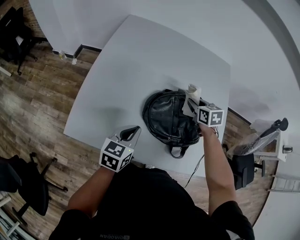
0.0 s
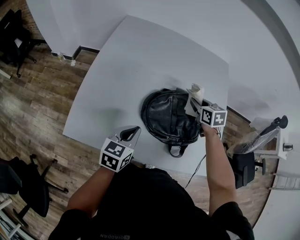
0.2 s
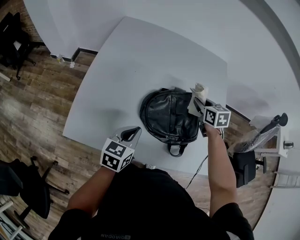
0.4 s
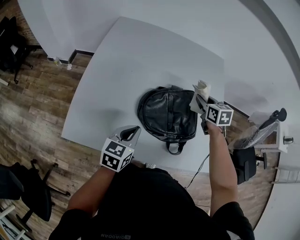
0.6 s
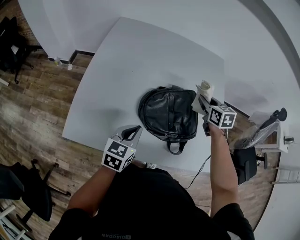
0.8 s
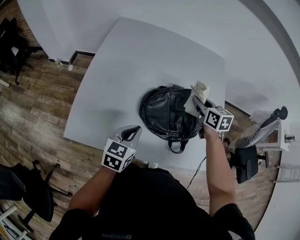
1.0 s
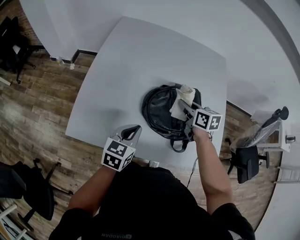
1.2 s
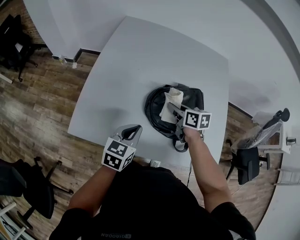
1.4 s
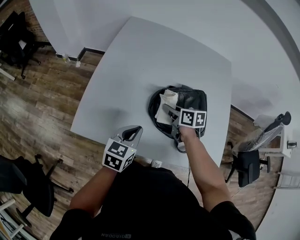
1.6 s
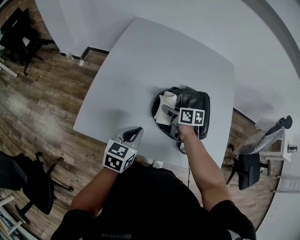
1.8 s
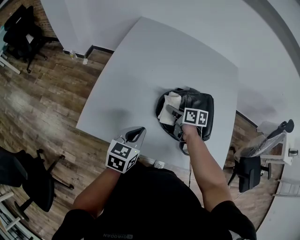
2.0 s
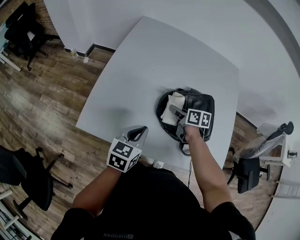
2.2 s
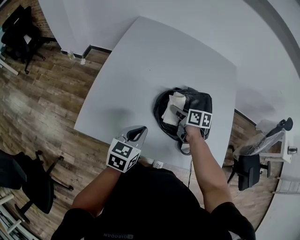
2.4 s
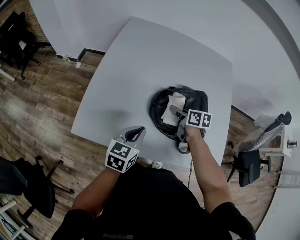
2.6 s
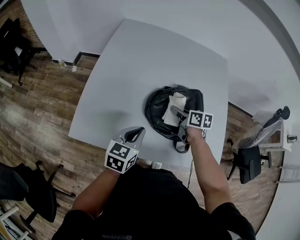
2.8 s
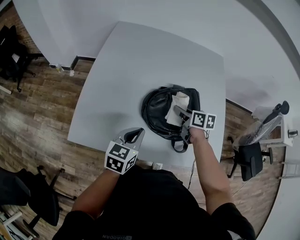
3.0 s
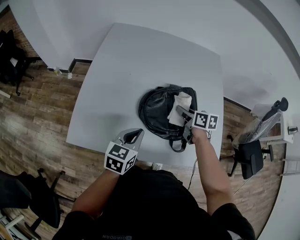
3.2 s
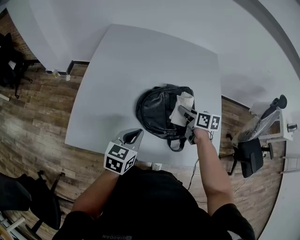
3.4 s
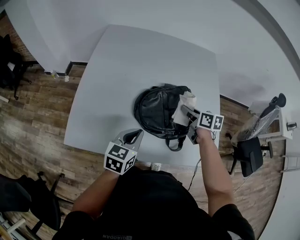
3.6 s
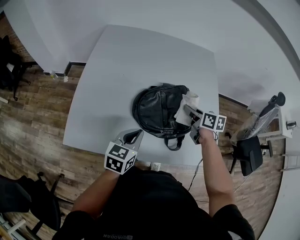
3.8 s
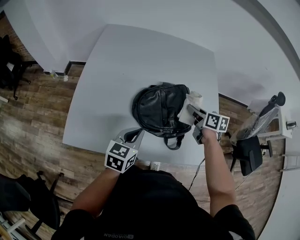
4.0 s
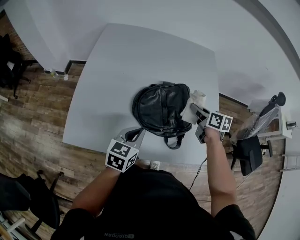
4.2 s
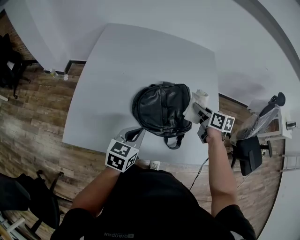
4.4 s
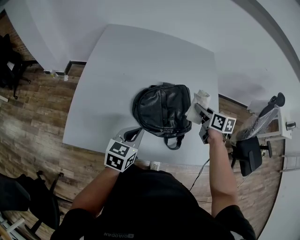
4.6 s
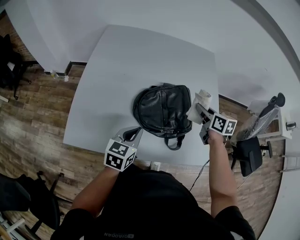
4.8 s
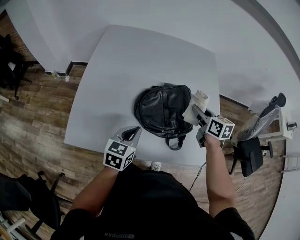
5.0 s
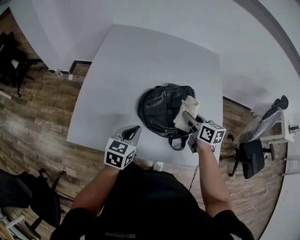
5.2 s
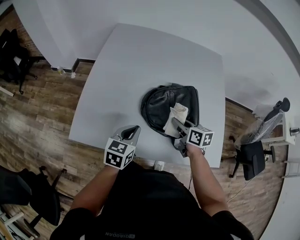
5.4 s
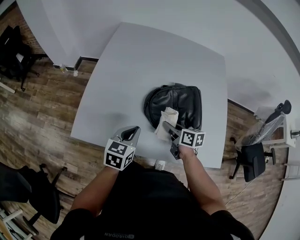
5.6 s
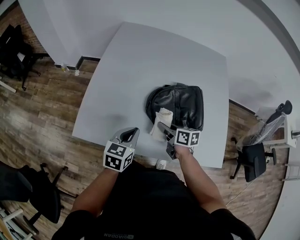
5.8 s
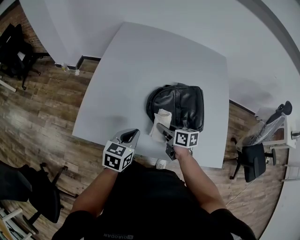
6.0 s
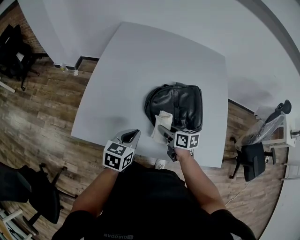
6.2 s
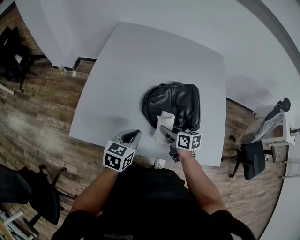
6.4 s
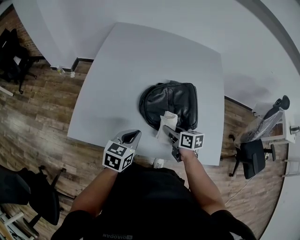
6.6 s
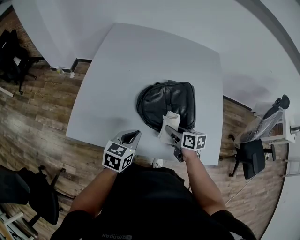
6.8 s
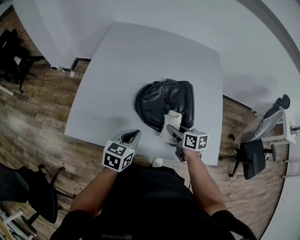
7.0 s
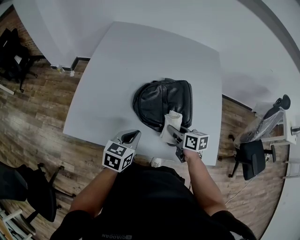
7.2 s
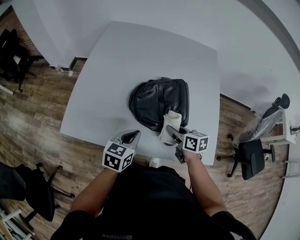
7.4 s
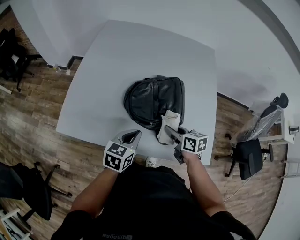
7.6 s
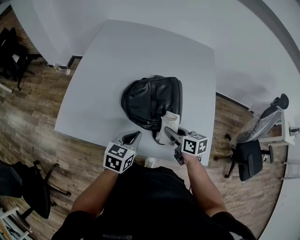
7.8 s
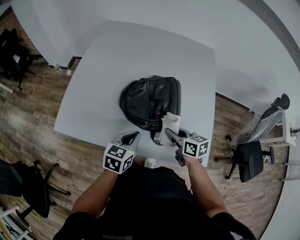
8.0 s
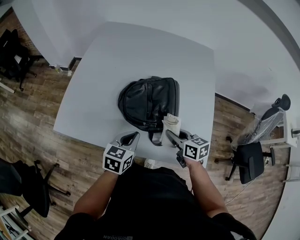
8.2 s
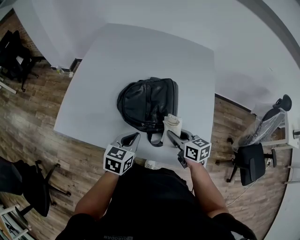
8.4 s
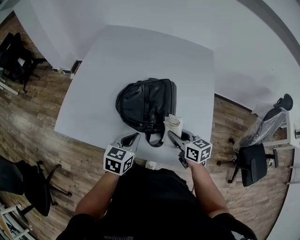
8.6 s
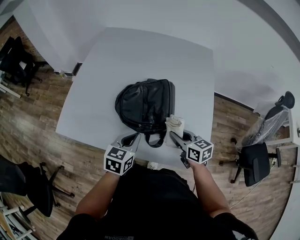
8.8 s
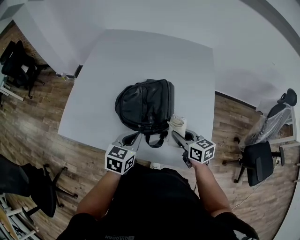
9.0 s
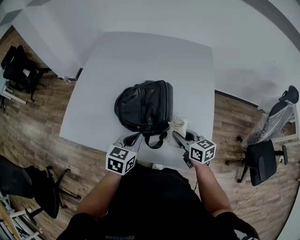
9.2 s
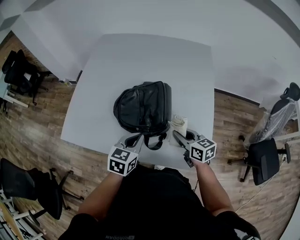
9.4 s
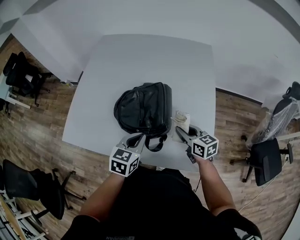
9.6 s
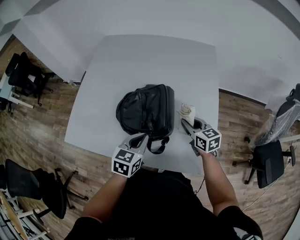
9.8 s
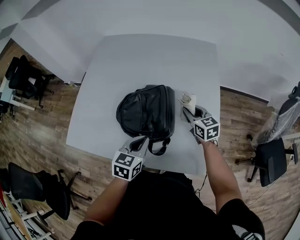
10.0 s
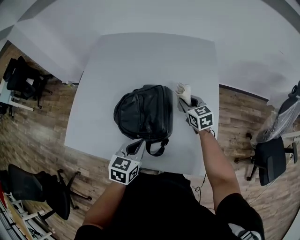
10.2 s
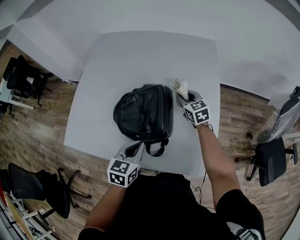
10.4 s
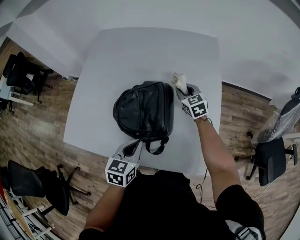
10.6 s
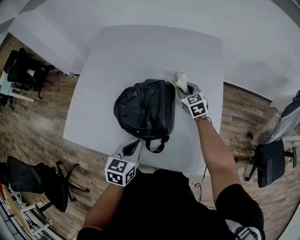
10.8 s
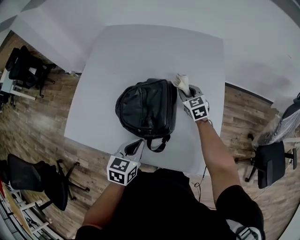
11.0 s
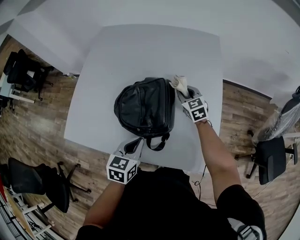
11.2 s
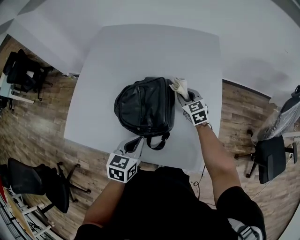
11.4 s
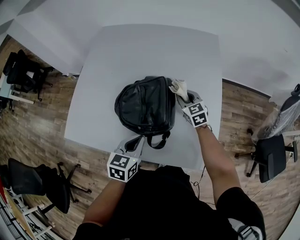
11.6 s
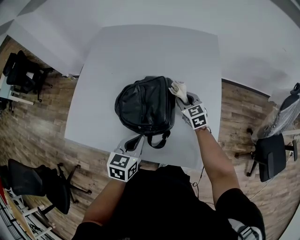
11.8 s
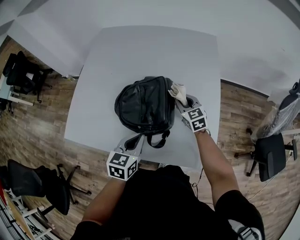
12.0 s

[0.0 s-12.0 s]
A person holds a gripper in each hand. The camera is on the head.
0.0 to 1.6 s: The right gripper is displaced to the left and backward by roughly 15 cm, and turns by about 30 degrees.
1.6 to 3.0 s: The right gripper goes some 10 cm to the right.
3.0 to 4.4 s: The right gripper shifts roughly 15 cm to the right and upward.
4.4 to 6.0 s: The right gripper goes approximately 25 cm to the left, downward and backward, and changes its angle by about 20 degrees; the left gripper heads to the left, covering some 10 cm.
6.0 to 7.6 s: Both grippers travel together to the right, roughly 15 cm.
7.6 to 9.0 s: The grippers both shift to the right by roughly 10 cm.
9.0 to 10.4 s: The right gripper goes roughly 20 cm forward, and swivels roughly 20 degrees.
10.4 to 12.0 s: The right gripper heads backward, covering roughly 5 cm.

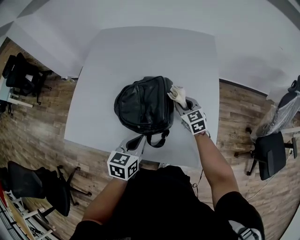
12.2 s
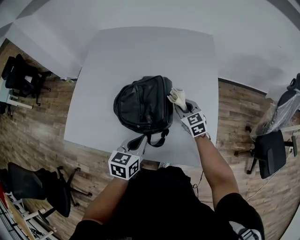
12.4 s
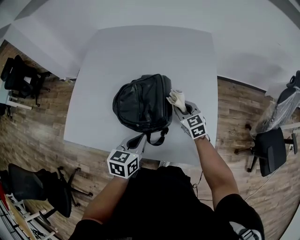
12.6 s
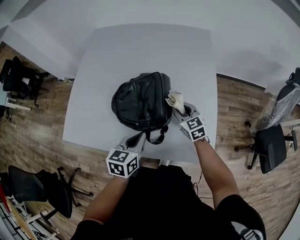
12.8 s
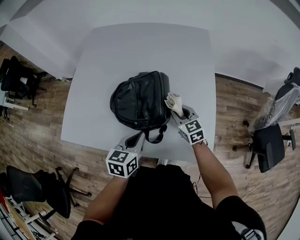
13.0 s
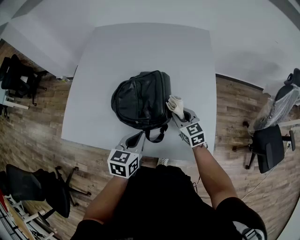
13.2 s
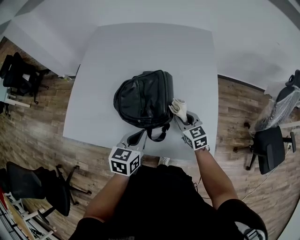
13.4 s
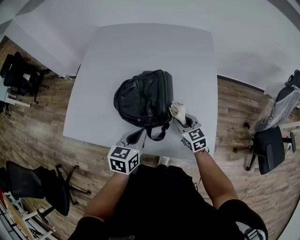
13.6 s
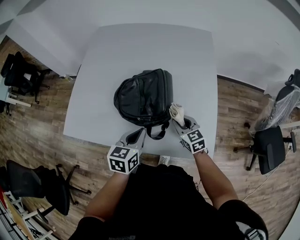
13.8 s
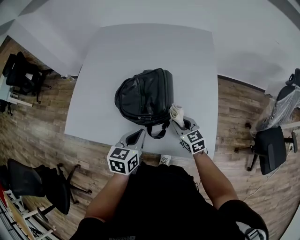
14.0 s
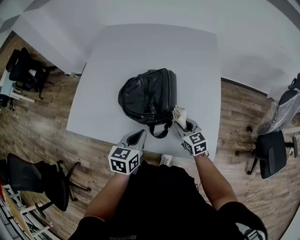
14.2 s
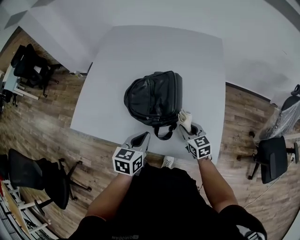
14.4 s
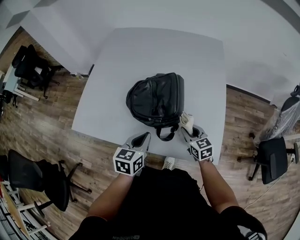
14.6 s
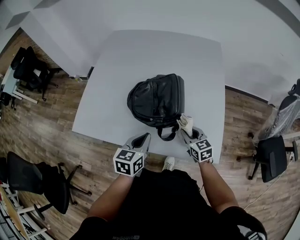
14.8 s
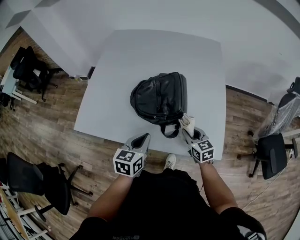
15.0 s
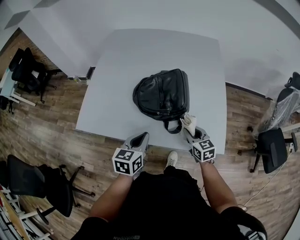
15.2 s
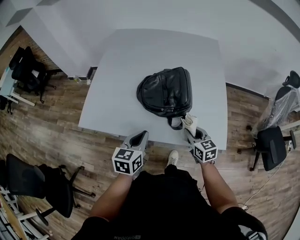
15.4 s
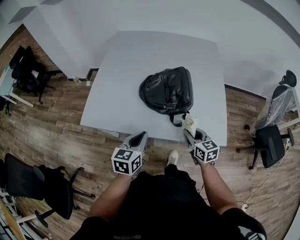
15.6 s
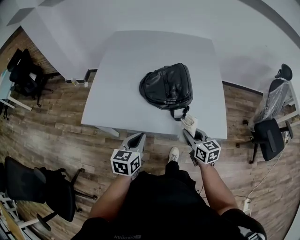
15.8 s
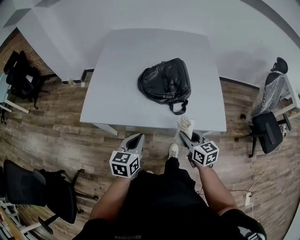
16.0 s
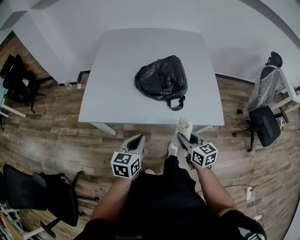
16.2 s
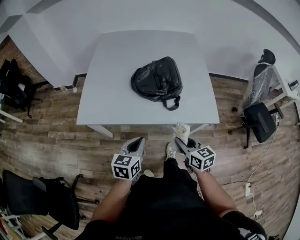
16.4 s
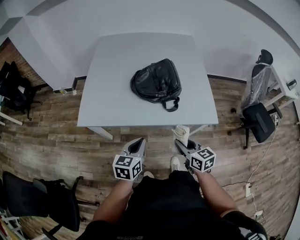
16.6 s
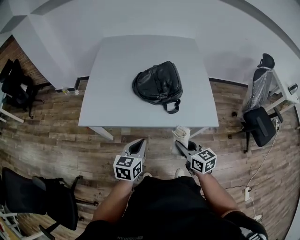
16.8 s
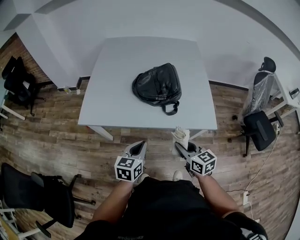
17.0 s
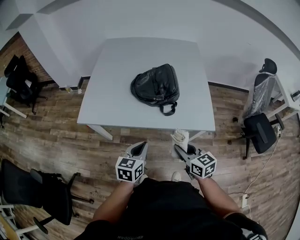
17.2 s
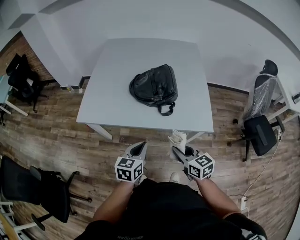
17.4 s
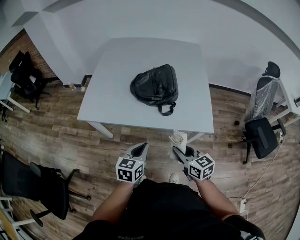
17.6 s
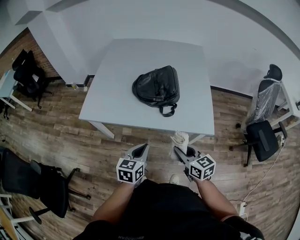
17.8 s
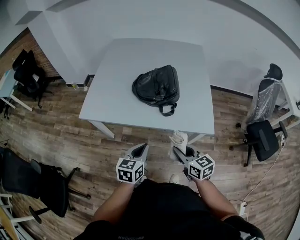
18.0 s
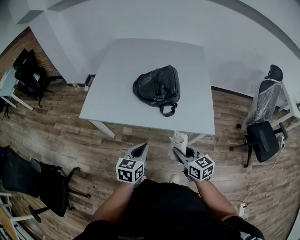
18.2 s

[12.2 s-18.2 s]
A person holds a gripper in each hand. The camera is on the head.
12.2 to 13.8 s: The right gripper goes approximately 15 cm backward.
13.8 to 15.2 s: The right gripper is displaced backward by approximately 10 cm. Meanwhile the left gripper heads to the left and backward, covering about 10 cm.
15.2 to 16.6 s: Both grippers move backward and to the left, roughly 20 cm.
16.6 to 18.2 s: The two grippers go roughly 5 cm to the right.

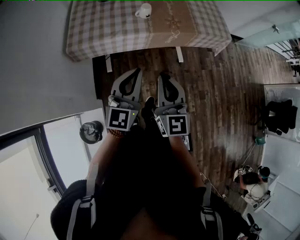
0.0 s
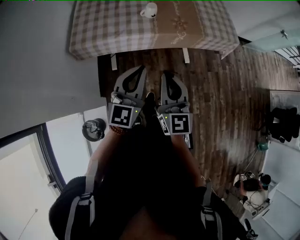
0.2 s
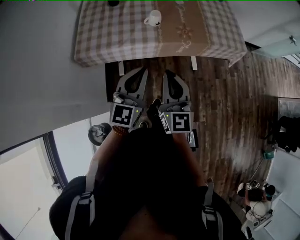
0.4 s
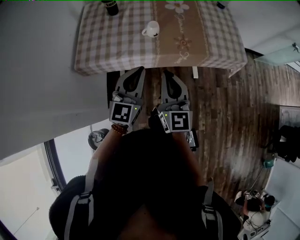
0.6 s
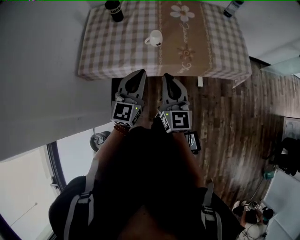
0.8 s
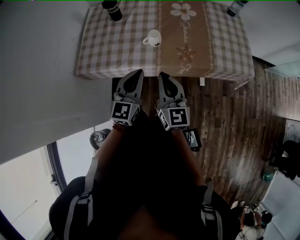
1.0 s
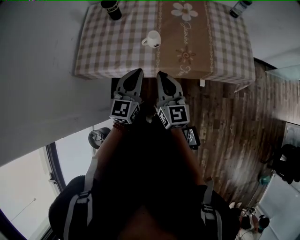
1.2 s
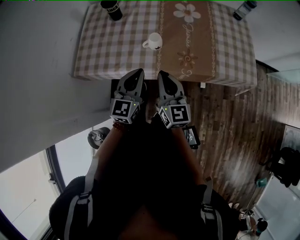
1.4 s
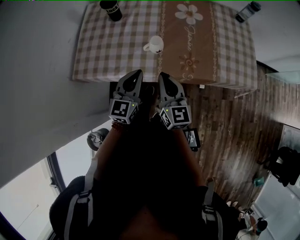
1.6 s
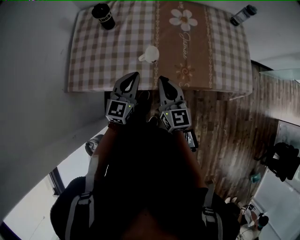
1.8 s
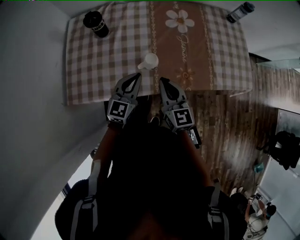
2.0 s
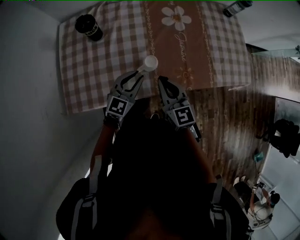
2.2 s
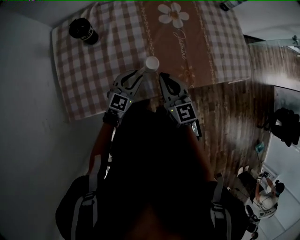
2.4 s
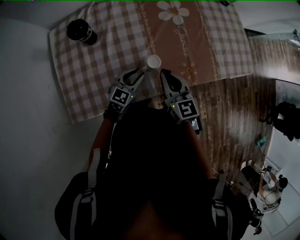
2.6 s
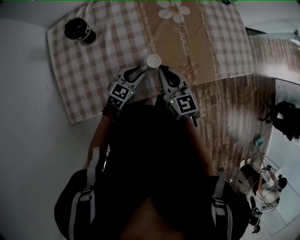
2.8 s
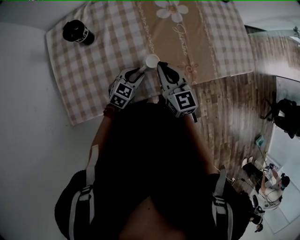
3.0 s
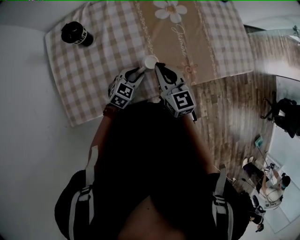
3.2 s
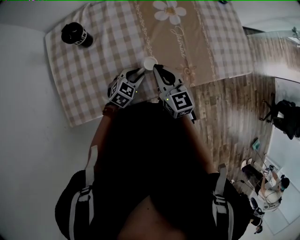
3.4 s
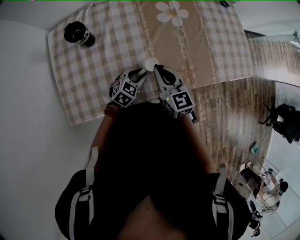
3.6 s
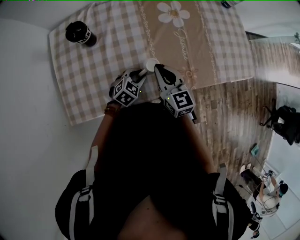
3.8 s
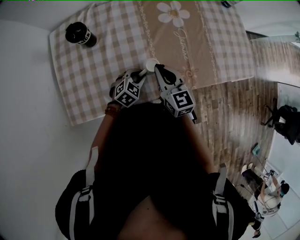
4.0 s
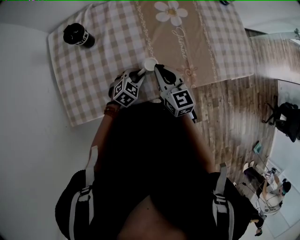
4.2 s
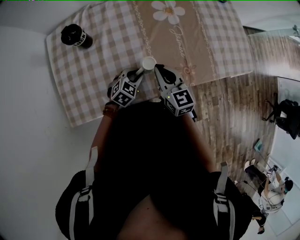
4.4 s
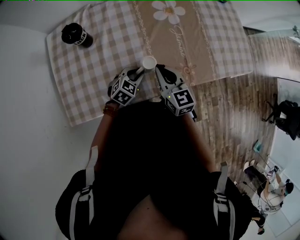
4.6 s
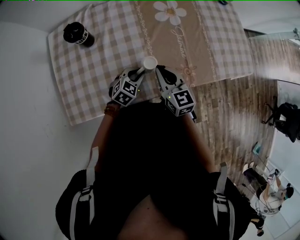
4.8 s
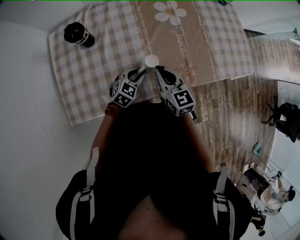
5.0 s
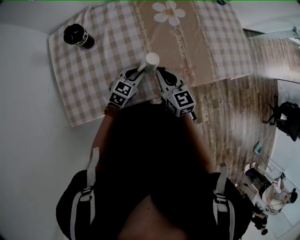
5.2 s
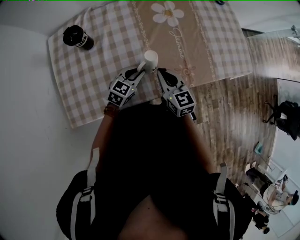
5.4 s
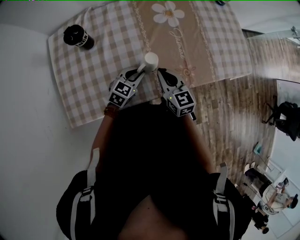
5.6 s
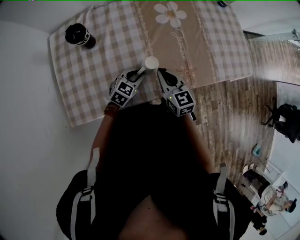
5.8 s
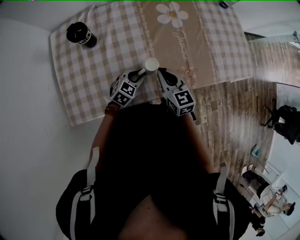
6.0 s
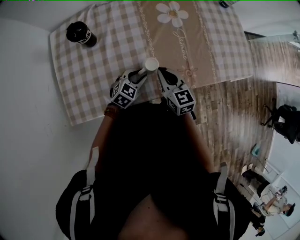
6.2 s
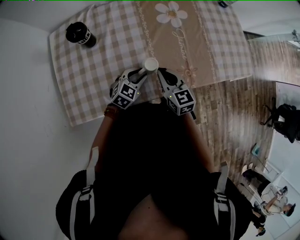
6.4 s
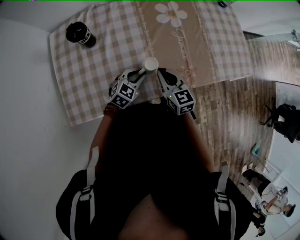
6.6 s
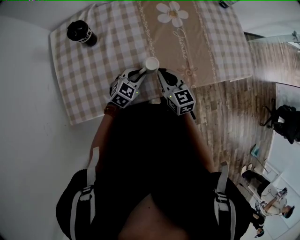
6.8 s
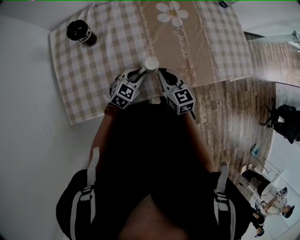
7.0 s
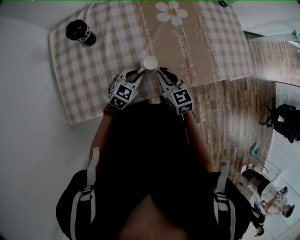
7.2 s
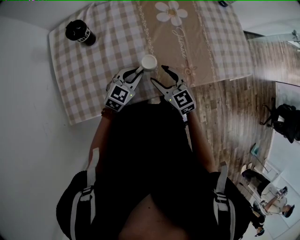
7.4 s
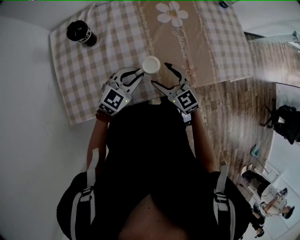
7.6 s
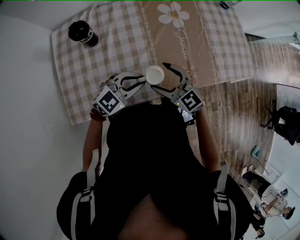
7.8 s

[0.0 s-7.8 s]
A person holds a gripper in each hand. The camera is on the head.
0.0 to 1.6 s: Both grippers move forward, approximately 30 cm. The right gripper turns by some 20 degrees.
1.6 to 3.2 s: The left gripper is displaced downward and forward by some 25 cm, and changes its angle by some 50 degrees; the right gripper heads forward, covering about 15 cm.
3.2 to 6.2 s: There are only small adjustments of the grippers.
6.2 to 7.8 s: The left gripper moves upward, approximately 15 cm, and swivels some 30 degrees. The right gripper shifts by some 5 cm, changes its angle by roughly 30 degrees, and opens its fingers.
